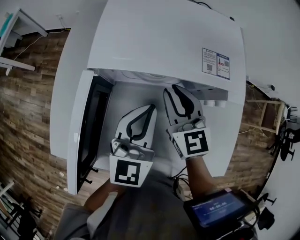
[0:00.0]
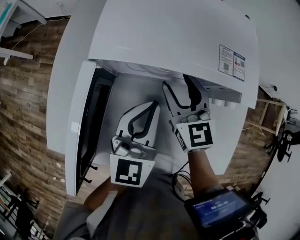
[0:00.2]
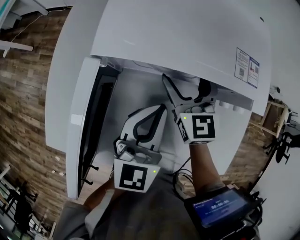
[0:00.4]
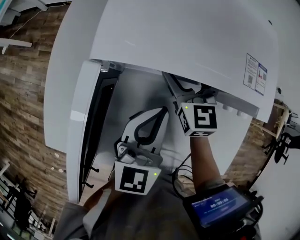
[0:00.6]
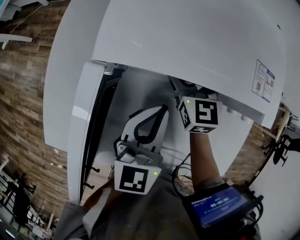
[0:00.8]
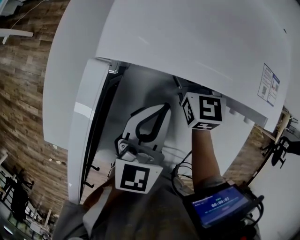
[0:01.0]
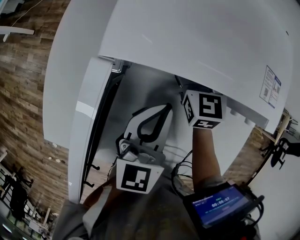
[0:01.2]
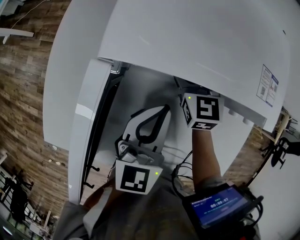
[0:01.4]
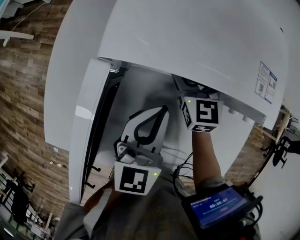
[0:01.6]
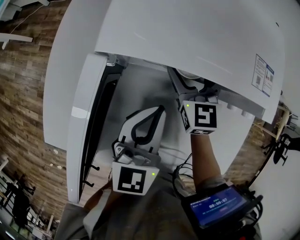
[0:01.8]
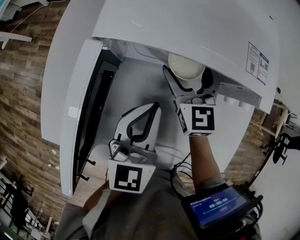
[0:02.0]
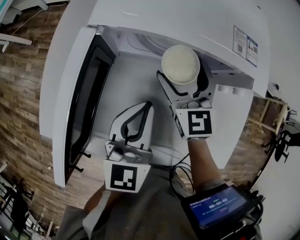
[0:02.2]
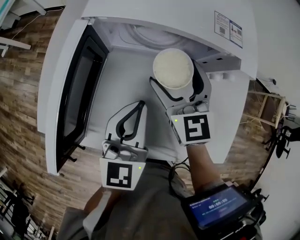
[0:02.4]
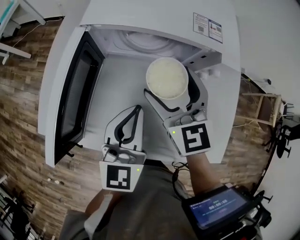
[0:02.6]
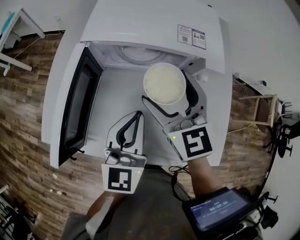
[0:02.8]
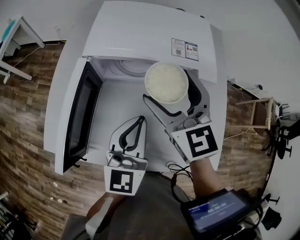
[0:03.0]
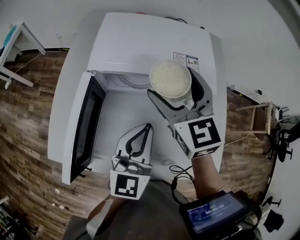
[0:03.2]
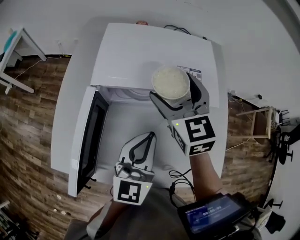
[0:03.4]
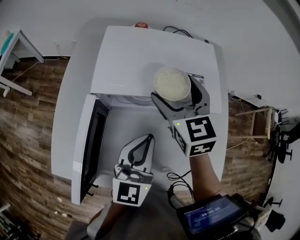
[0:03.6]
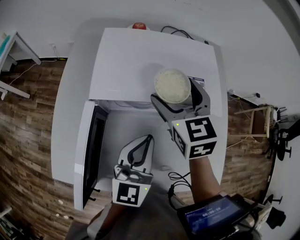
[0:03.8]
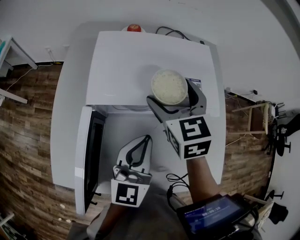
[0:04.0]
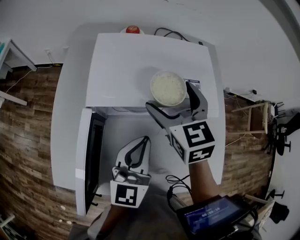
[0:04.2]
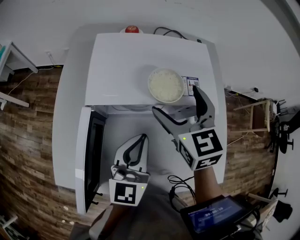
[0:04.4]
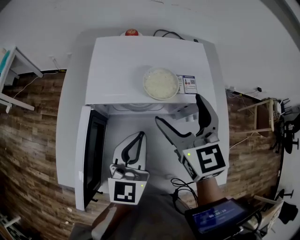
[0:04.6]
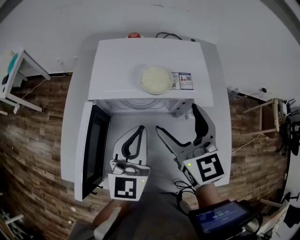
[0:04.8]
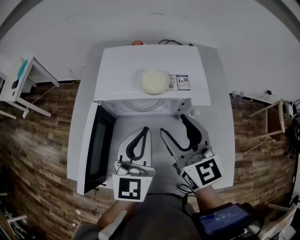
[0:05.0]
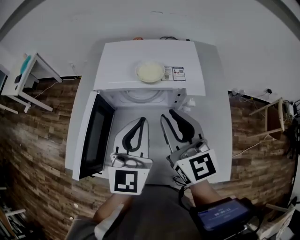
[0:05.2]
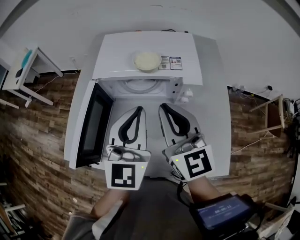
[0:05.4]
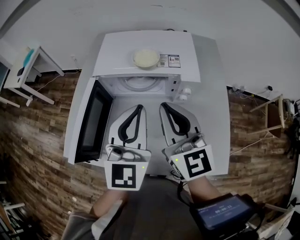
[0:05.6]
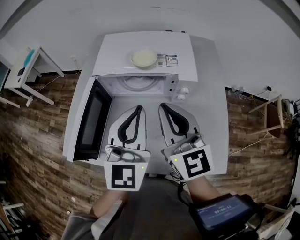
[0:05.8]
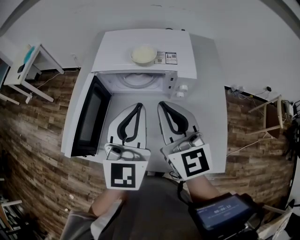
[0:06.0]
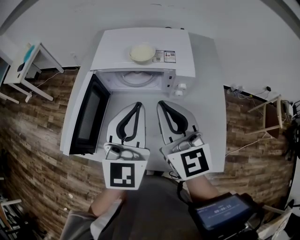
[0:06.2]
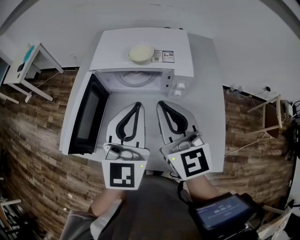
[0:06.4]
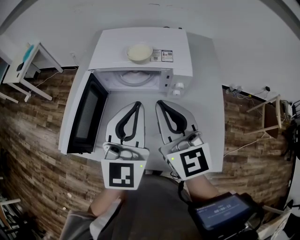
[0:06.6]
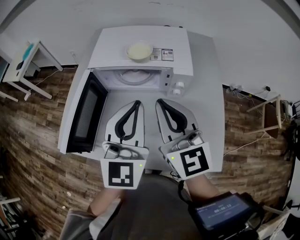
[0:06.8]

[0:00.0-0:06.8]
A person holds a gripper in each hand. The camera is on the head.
0:00.0 to 0:01.4: The right gripper shifts about 15 cm downward and forward, and opens. The left gripper is displaced downward by roughly 5 cm.
0:01.4 to 0:02.8: The left gripper goes about 15 cm backward and upward. Meanwhile the right gripper travels backward and upward by approximately 25 cm.
0:02.8 to 0:04.0: The right gripper travels forward by approximately 15 cm, and changes its angle by approximately 20 degrees. The left gripper travels forward by roughly 10 cm.
0:04.0 to 0:05.4: The left gripper goes roughly 10 cm upward and backward, while the right gripper moves backward and upward, approximately 20 cm, tilts its fingers about 30 degrees upward, and closes up.
0:05.4 to 0:06.8: The left gripper moves about 5 cm.

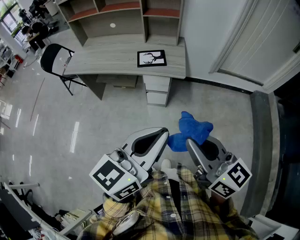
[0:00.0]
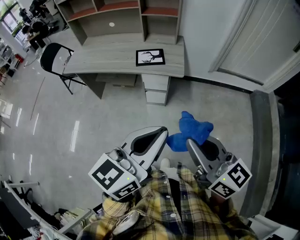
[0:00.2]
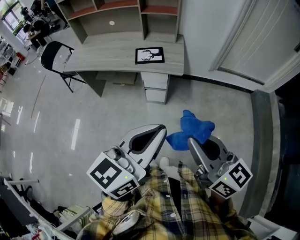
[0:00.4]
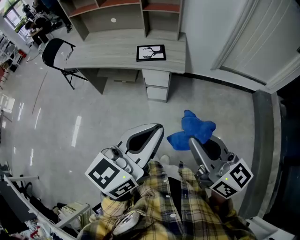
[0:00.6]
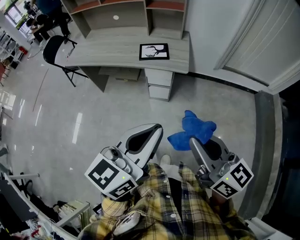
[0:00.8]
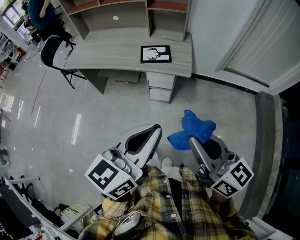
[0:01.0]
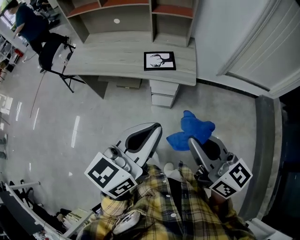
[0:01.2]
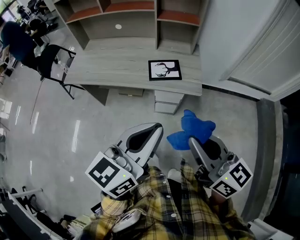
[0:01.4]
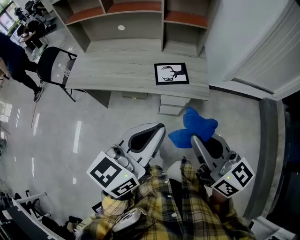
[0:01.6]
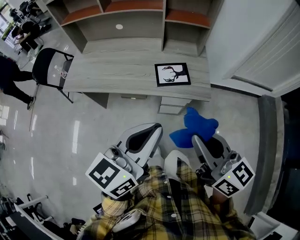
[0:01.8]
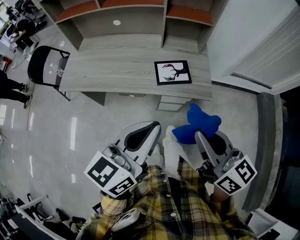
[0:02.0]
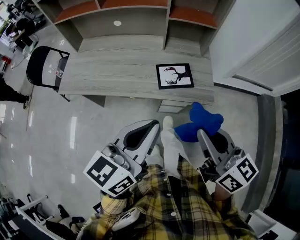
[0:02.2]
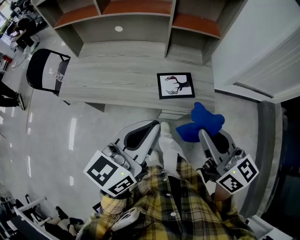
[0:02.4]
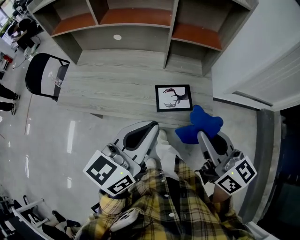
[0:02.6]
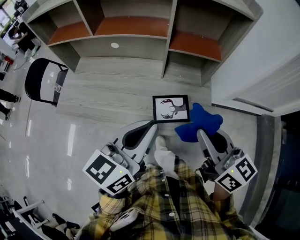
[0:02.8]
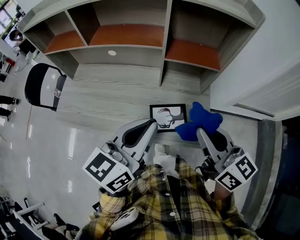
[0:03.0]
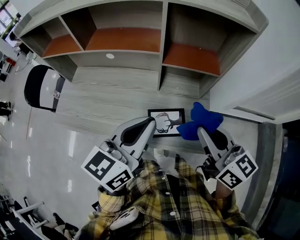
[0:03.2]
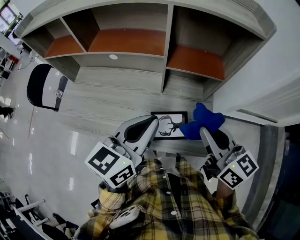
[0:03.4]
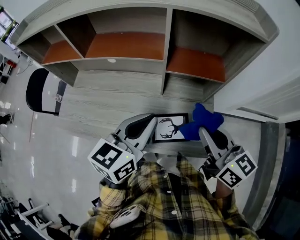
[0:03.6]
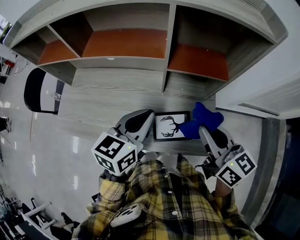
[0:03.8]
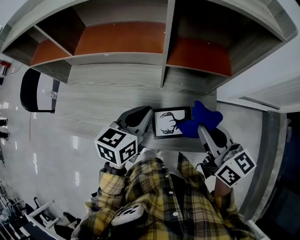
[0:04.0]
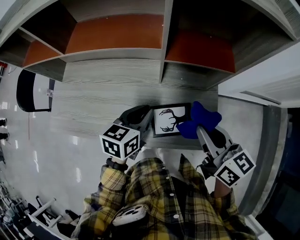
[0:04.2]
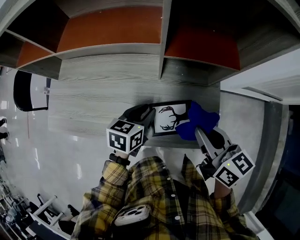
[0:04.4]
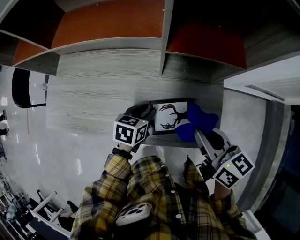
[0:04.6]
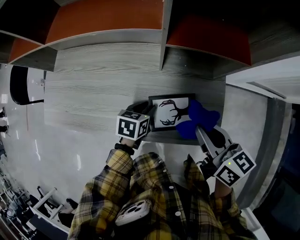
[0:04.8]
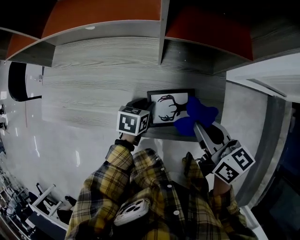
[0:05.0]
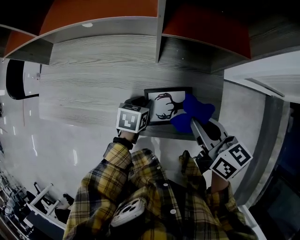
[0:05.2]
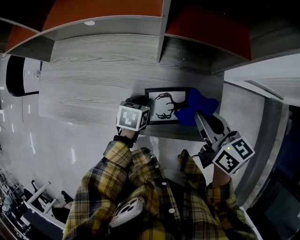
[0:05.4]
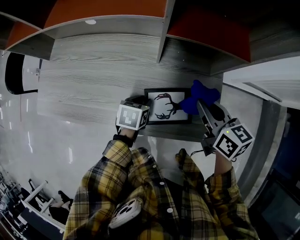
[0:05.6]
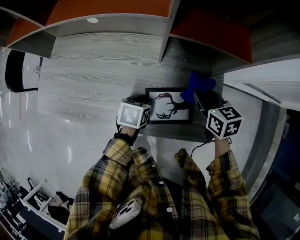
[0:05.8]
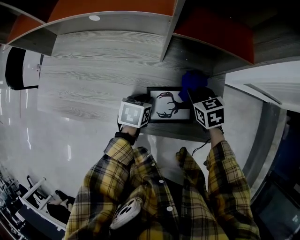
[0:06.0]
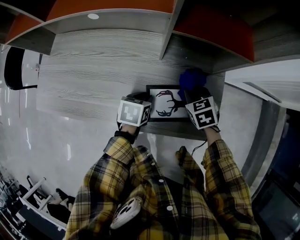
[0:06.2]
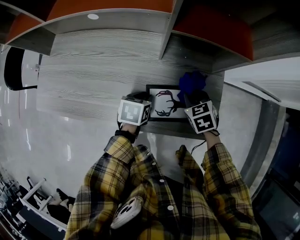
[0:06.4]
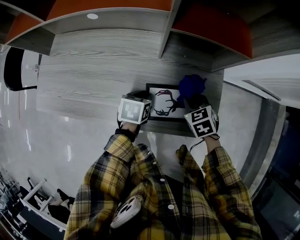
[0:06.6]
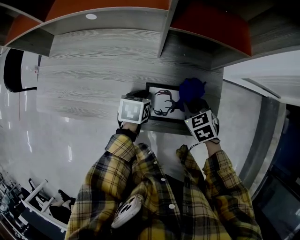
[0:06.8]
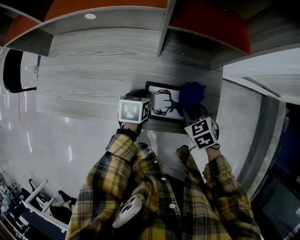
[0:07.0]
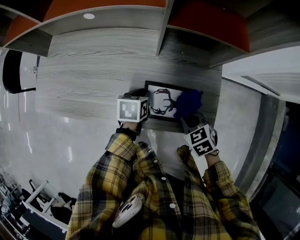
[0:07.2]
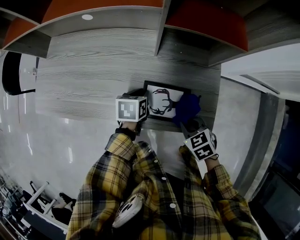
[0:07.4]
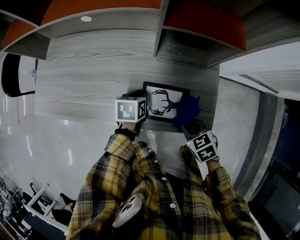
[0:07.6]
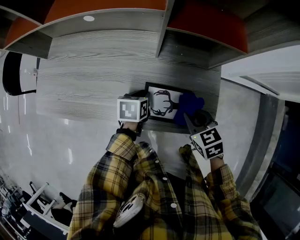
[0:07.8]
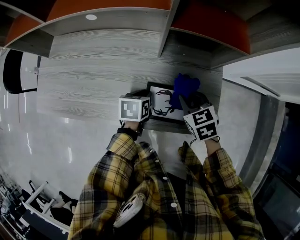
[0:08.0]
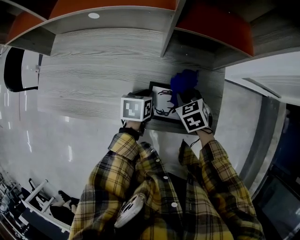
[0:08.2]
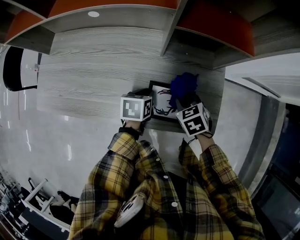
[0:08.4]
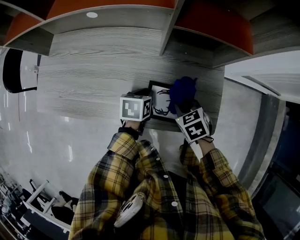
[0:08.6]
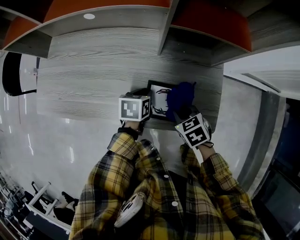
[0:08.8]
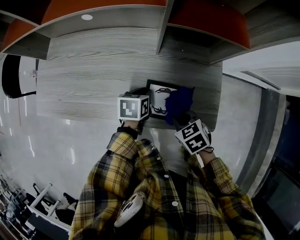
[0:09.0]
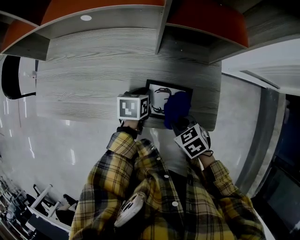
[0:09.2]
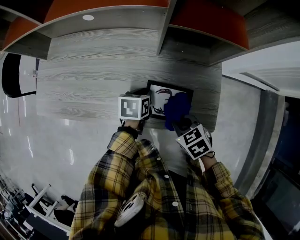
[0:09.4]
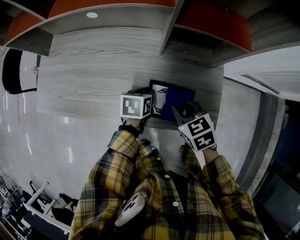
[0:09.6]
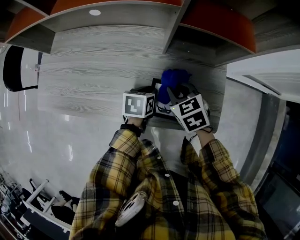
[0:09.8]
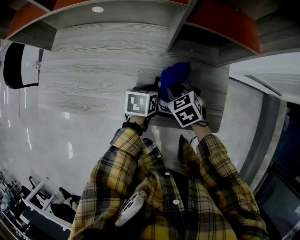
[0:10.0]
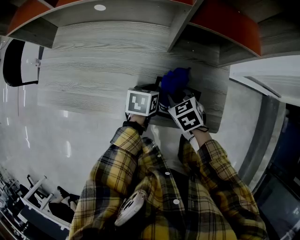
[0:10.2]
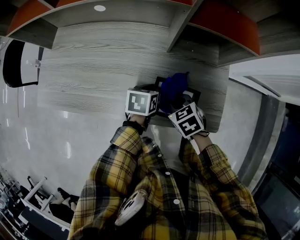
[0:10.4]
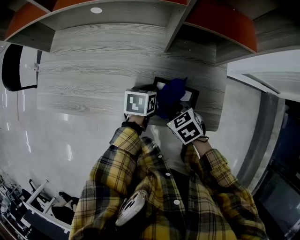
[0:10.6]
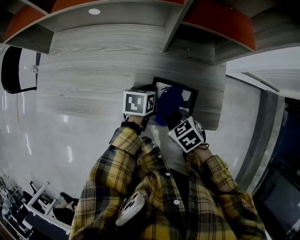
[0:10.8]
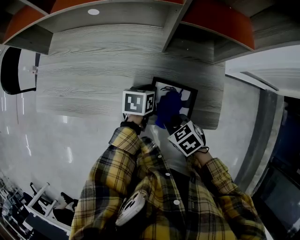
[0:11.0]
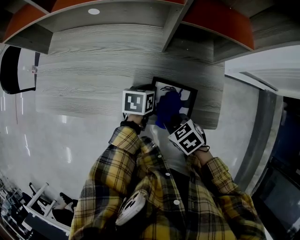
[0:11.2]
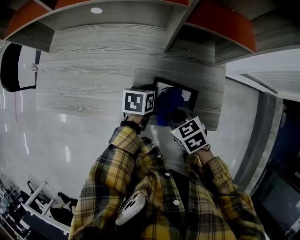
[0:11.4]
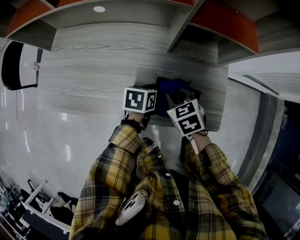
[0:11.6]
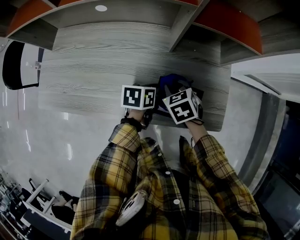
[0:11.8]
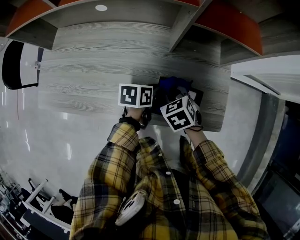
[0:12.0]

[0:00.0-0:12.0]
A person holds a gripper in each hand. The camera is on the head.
0:00.0 to 0:01.6: Both grippers travel together forward and to the left, roughly 25 cm.
0:01.6 to 0:03.0: Both grippers travel together forward, approximately 30 cm.
0:03.0 to 0:04.4: The left gripper heads downward and forward, covering some 30 cm, points its fingers some 30 degrees further downward, and opens its fingers. Meanwhile the right gripper goes some 15 cm downward and forward.
0:04.4 to 0:06.0: The left gripper heads downward, covering some 10 cm. The right gripper is displaced downward by approximately 20 cm, and angles its fingers downward, by roughly 30 degrees.
0:06.0 to 0:07.6: The right gripper travels backward by some 15 cm.
0:07.6 to 0:09.0: The right gripper moves to the left, roughly 5 cm, and travels forward and back again, about 15 cm each way.
0:09.0 to 0:10.4: The right gripper goes roughly 5 cm forward.

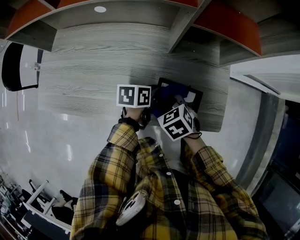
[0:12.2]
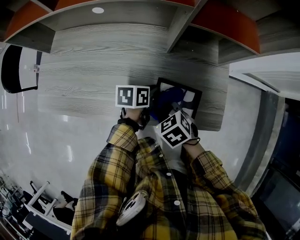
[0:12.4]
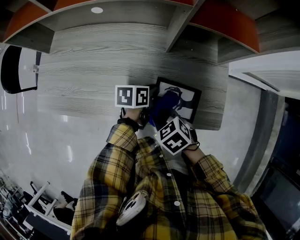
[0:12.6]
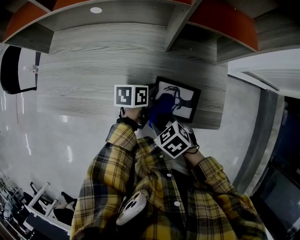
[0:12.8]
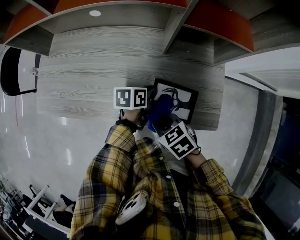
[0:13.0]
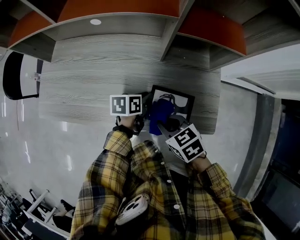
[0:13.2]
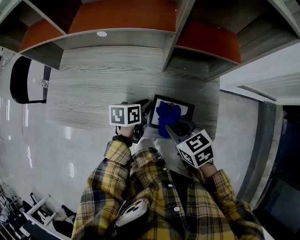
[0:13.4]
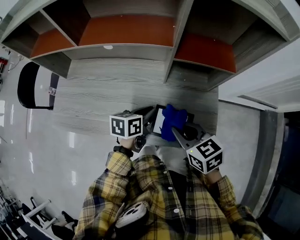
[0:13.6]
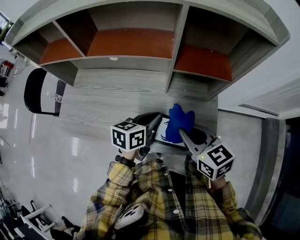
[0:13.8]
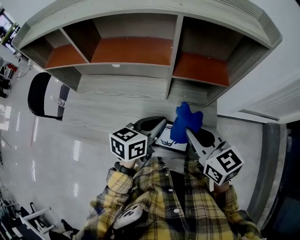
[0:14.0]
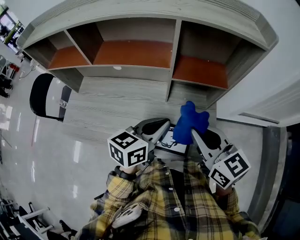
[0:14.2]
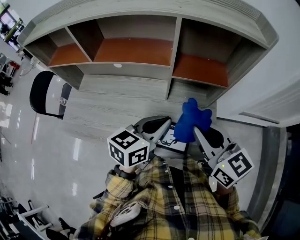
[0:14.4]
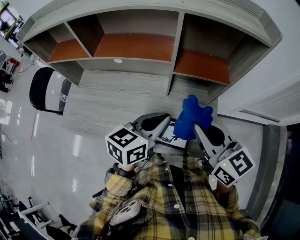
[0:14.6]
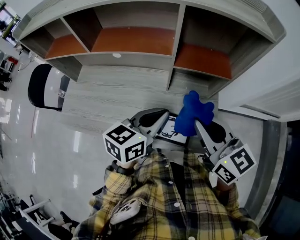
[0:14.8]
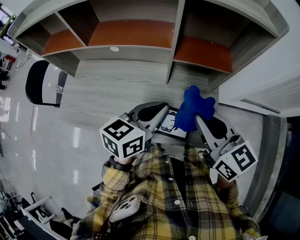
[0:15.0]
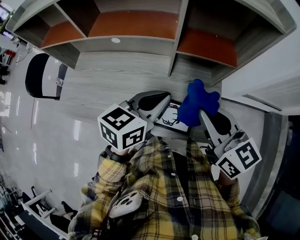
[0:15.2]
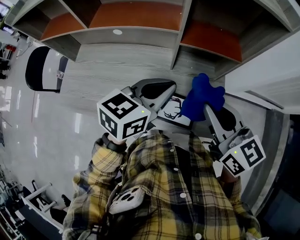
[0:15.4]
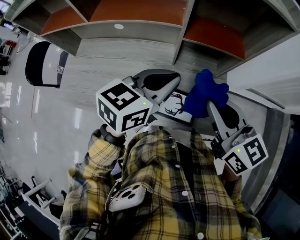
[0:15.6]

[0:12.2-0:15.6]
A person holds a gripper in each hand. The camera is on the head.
0:12.2 to 0:13.8: Both grippers move upward, roughly 20 cm. The left gripper rotates some 30 degrees. The right gripper tips its fingers upward by roughly 30 degrees.
0:13.8 to 0:15.6: The right gripper moves upward, about 10 cm. Meanwhile the left gripper shifts approximately 15 cm upward, and turns by some 20 degrees.

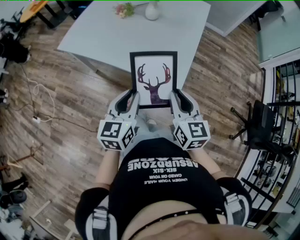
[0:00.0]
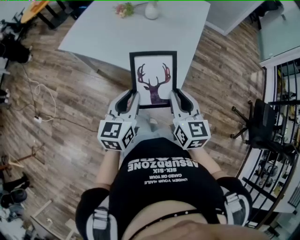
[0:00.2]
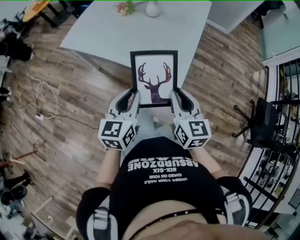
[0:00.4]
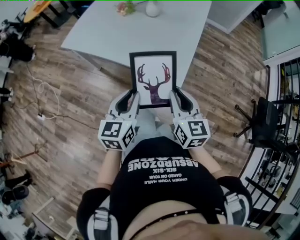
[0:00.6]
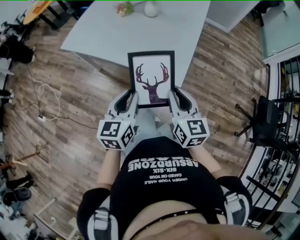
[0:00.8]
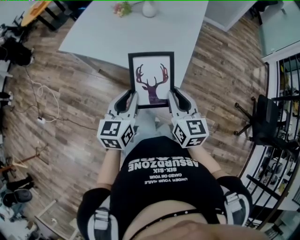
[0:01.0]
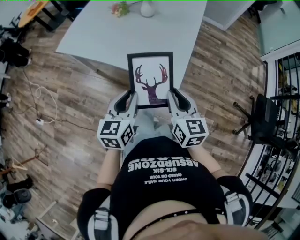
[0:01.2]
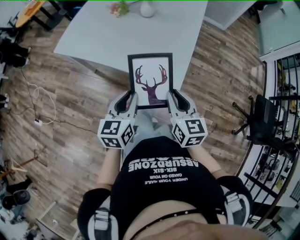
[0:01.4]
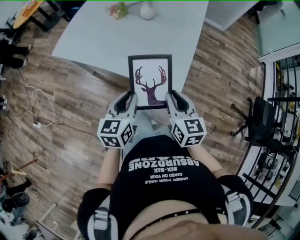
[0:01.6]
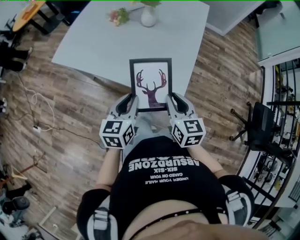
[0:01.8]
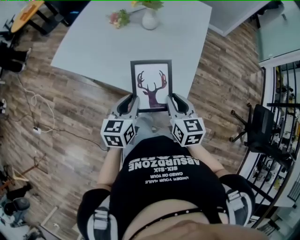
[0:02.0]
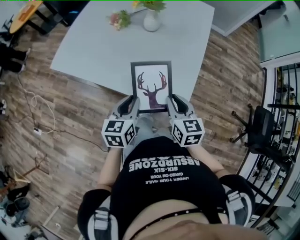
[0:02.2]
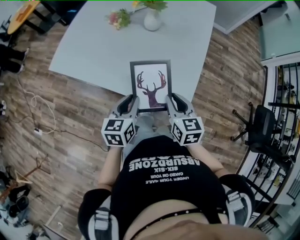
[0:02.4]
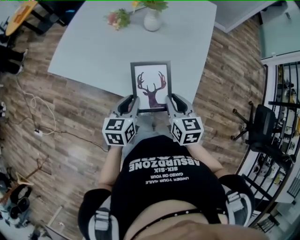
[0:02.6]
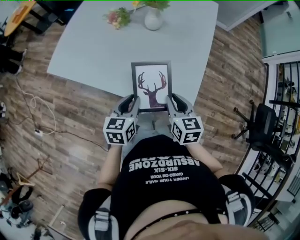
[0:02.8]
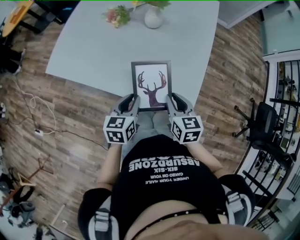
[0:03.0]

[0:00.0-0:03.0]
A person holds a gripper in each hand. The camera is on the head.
0:00.0 to 0:01.6: The left gripper goes roughly 5 cm forward. Meanwhile the right gripper ends up roughly 5 cm from where it was.
0:01.6 to 0:03.0: Both grippers move forward and downward, approximately 15 cm.
